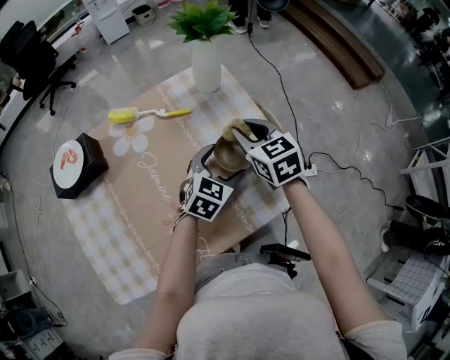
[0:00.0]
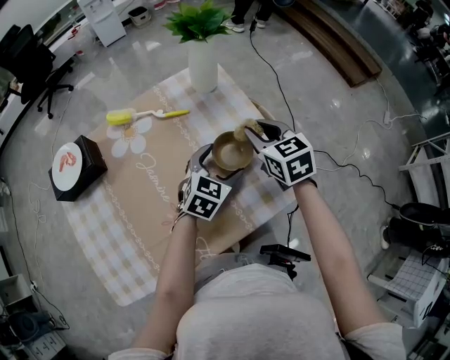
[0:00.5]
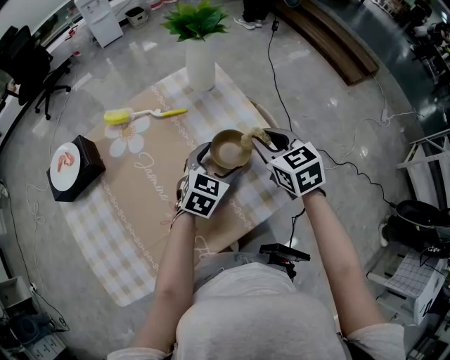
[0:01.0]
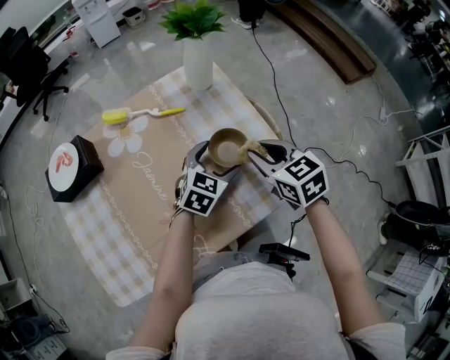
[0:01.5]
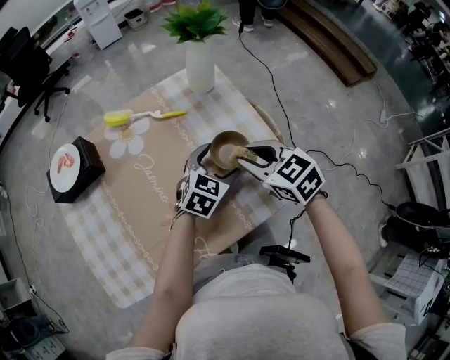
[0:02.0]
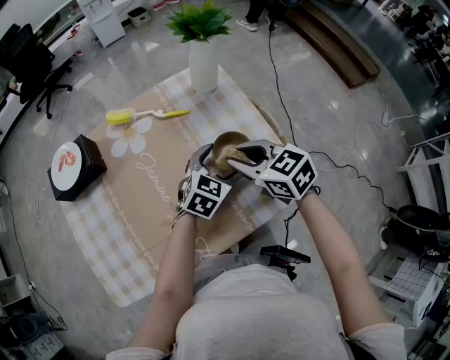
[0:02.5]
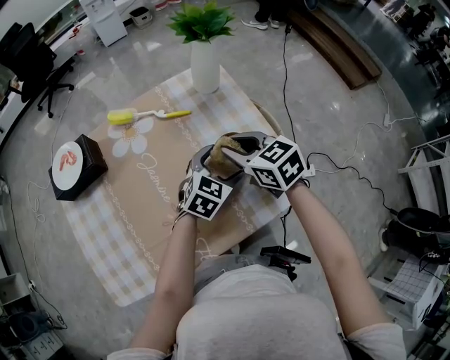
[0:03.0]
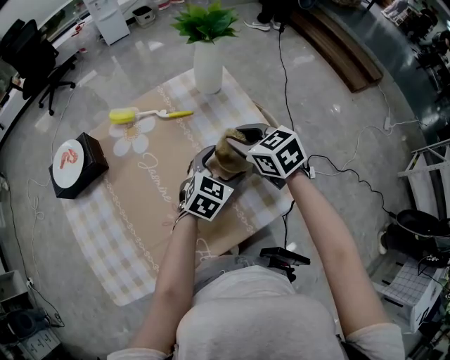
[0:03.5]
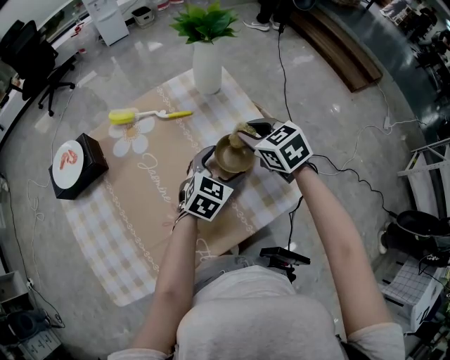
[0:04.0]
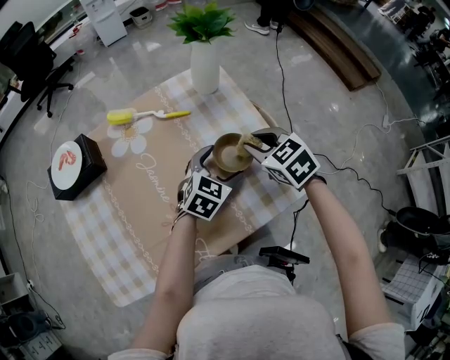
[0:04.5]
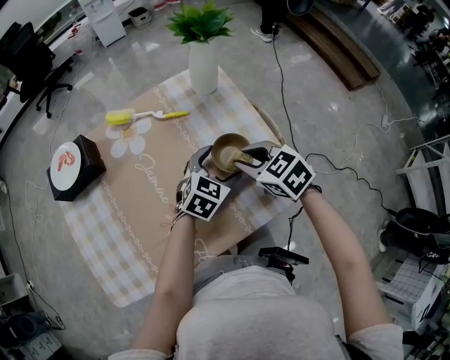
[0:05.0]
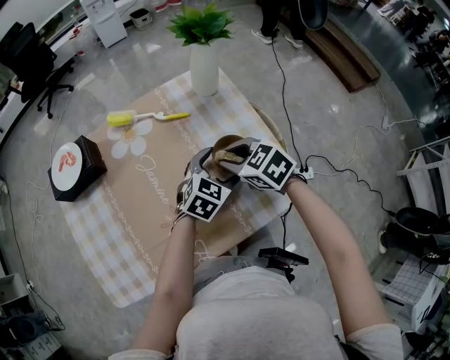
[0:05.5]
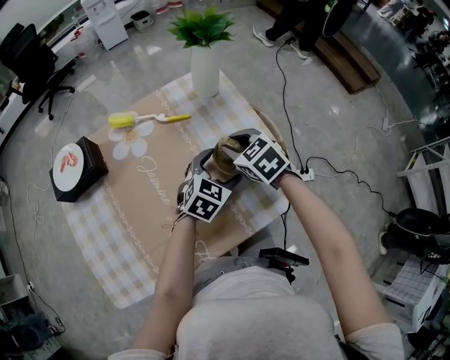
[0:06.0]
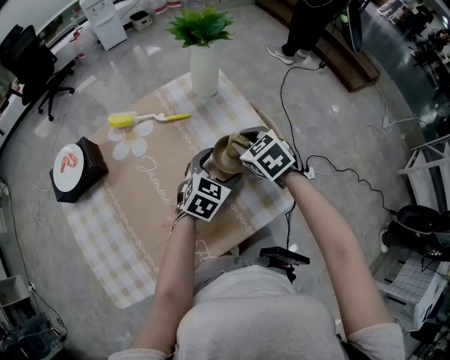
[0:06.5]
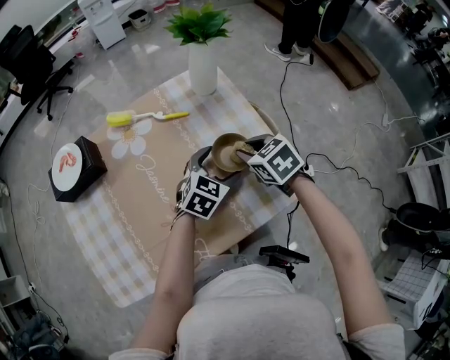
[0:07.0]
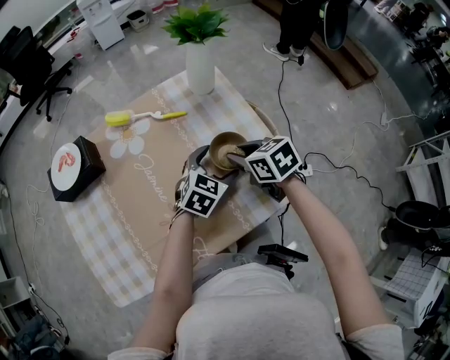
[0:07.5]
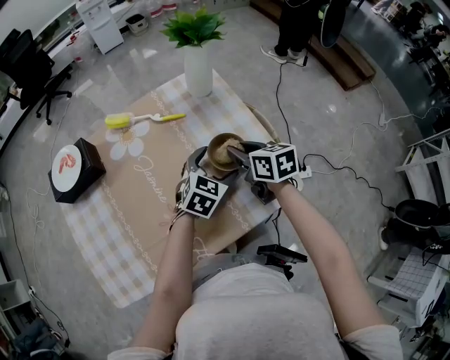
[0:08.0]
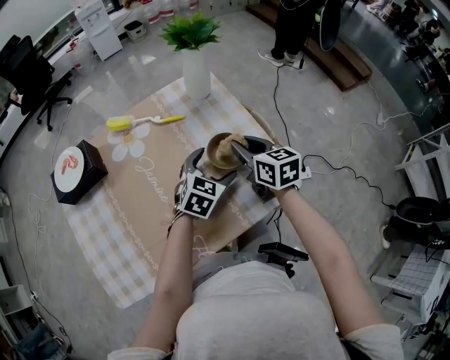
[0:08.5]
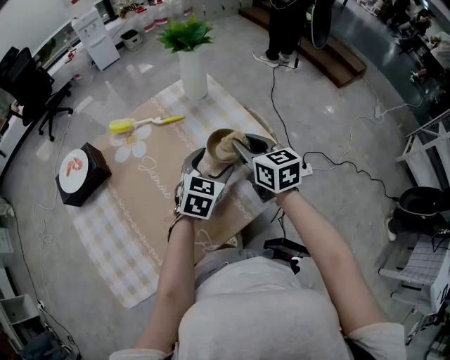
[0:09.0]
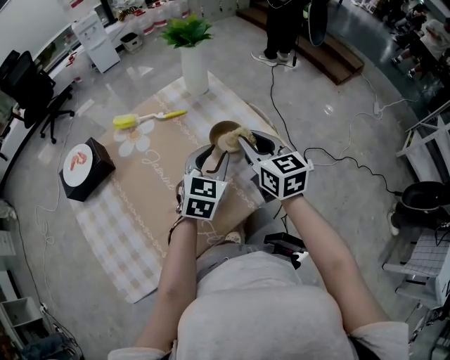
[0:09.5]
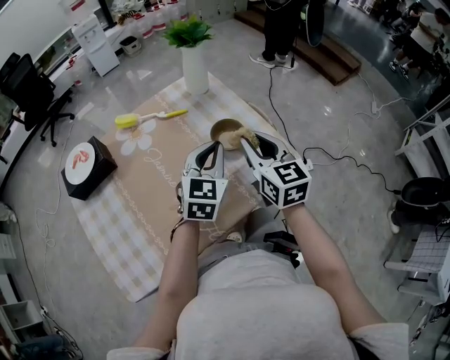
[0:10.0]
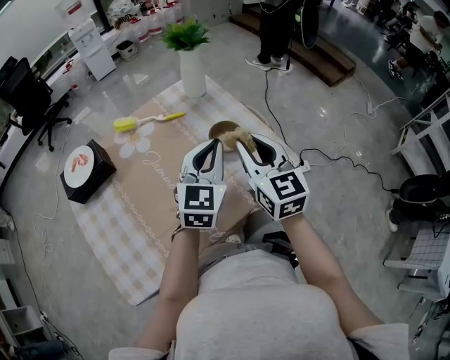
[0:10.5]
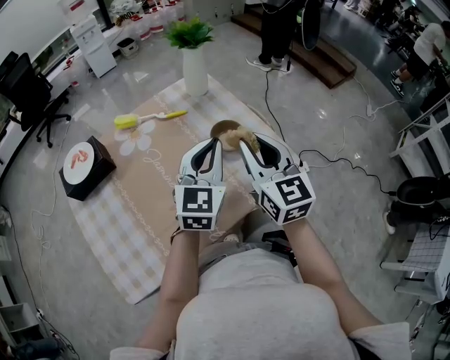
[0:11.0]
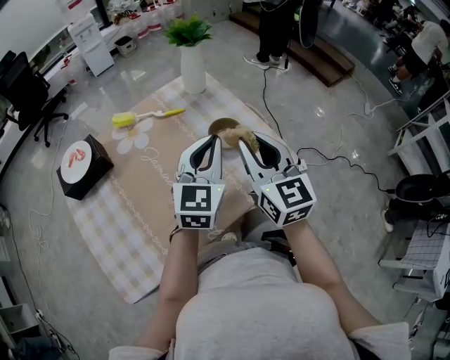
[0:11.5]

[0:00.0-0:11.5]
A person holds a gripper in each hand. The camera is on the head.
0.0 to 2.0 s: The right gripper is displaced backward by about 10 cm.
2.0 to 4.0 s: The right gripper travels forward by roughly 10 cm.
4.0 to 6.0 s: The right gripper travels backward and back again, about 10 cm each way.
6.0 to 7.5 s: The right gripper turns by some 20 degrees.
7.5 to 9.5 s: The two grippers go roughly 10 cm upward. The left gripper closes up. Meanwhile the right gripper changes its angle by approximately 40 degrees.
9.5 to 11.5 s: The left gripper moves upward, roughly 10 cm; the right gripper goes about 10 cm upward and backward.

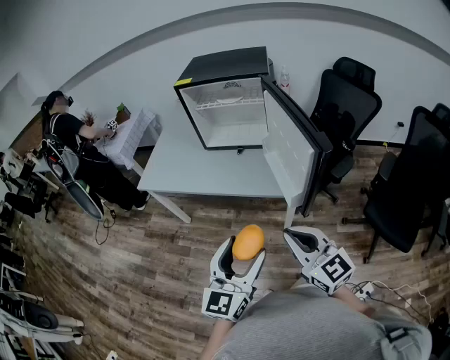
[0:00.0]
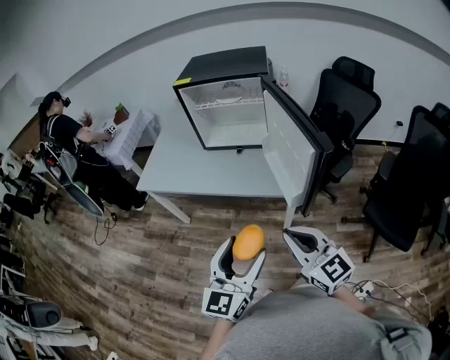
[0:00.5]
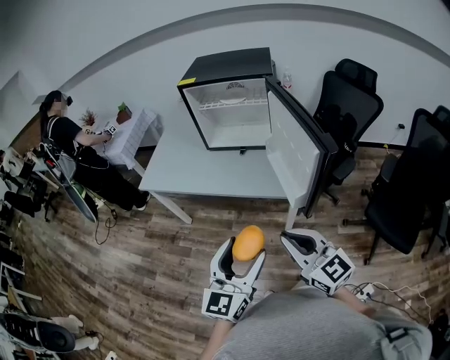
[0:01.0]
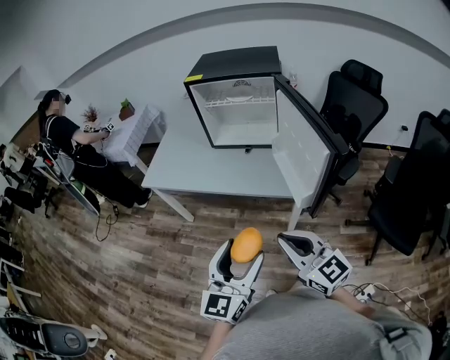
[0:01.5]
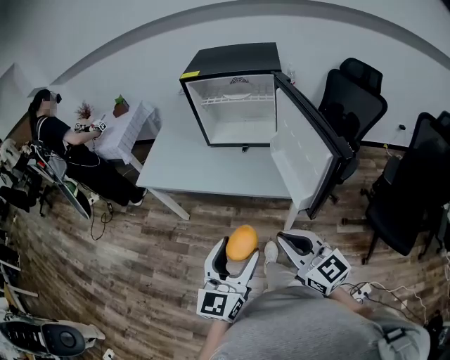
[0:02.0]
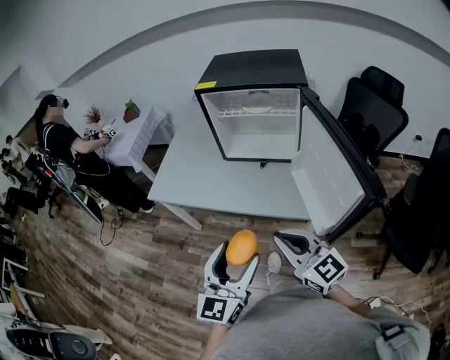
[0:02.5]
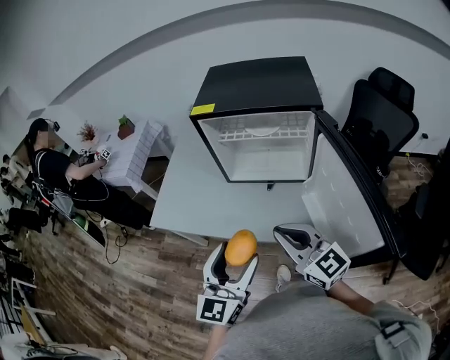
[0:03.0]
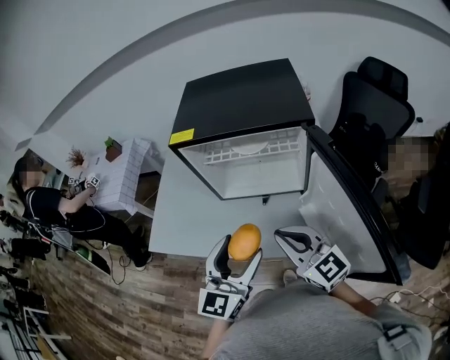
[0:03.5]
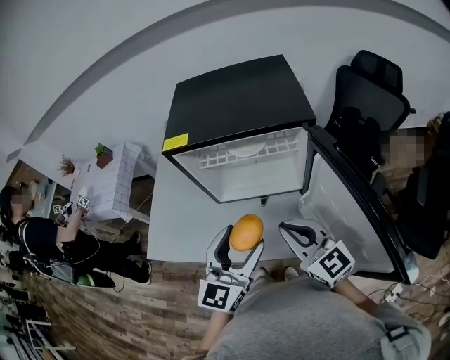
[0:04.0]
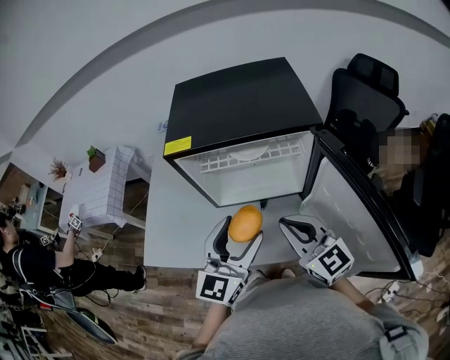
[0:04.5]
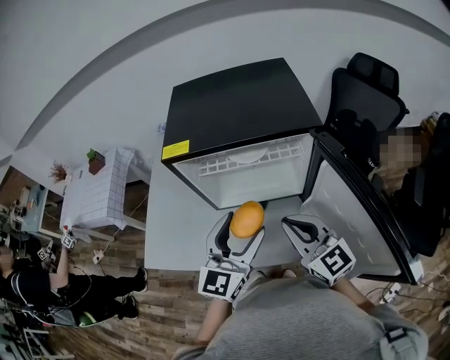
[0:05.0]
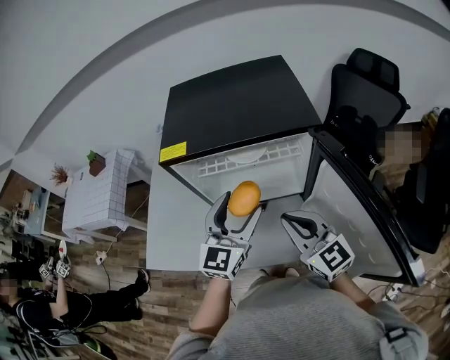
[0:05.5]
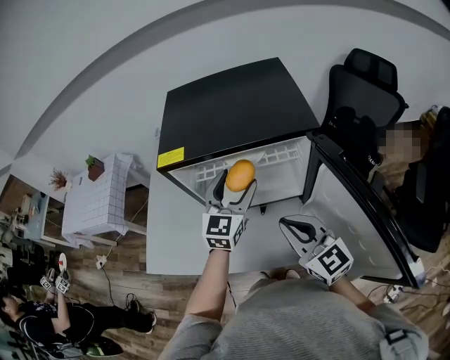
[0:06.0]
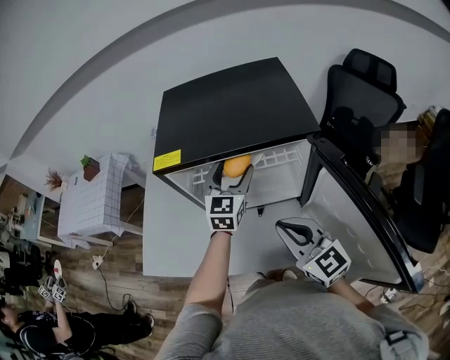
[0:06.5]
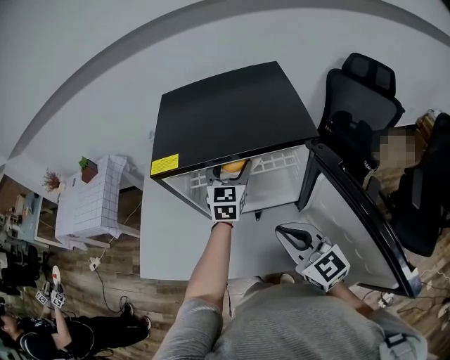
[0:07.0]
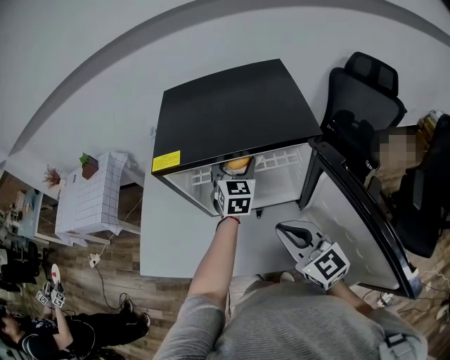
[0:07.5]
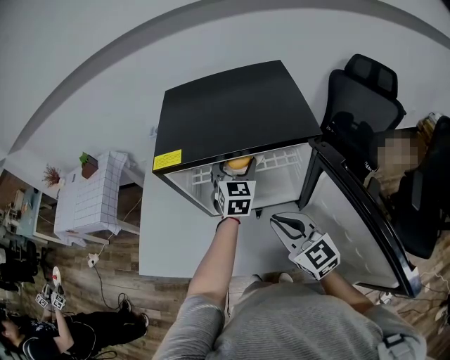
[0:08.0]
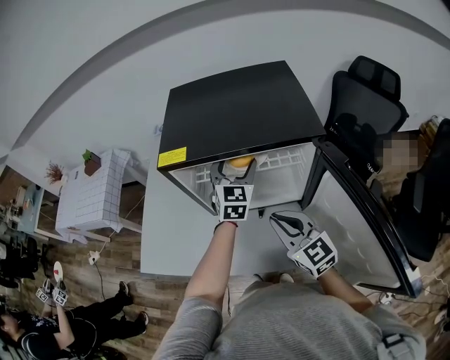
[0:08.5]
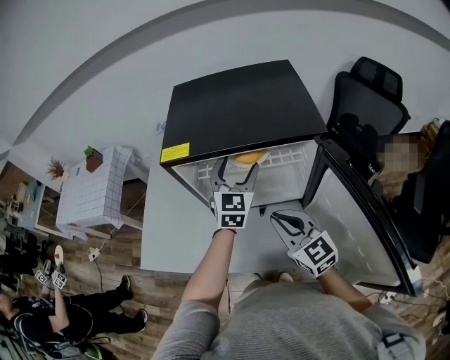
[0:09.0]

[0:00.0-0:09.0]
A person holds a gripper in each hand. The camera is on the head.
0.0 to 2.0 s: The right gripper moves some 5 cm, while the left gripper moves about 5 cm.
2.0 to 4.5 s: The grippers both shift forward by about 40 cm.
4.5 to 7.0 s: The left gripper shifts some 25 cm forward.
7.0 to 9.0 s: The grippers make only small movements.

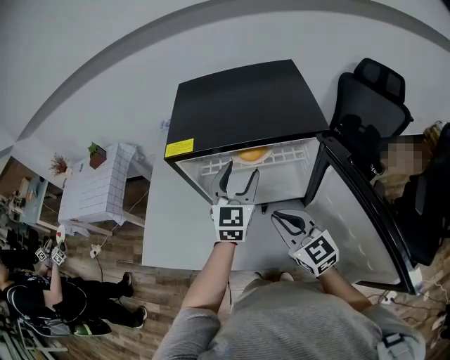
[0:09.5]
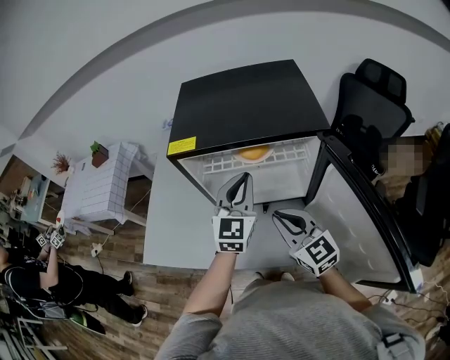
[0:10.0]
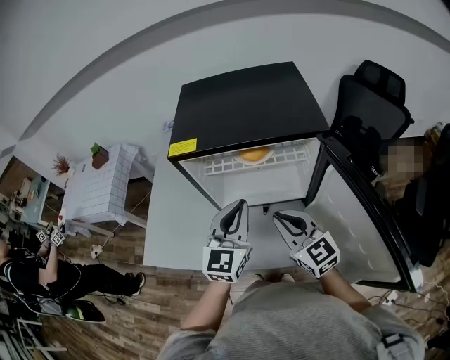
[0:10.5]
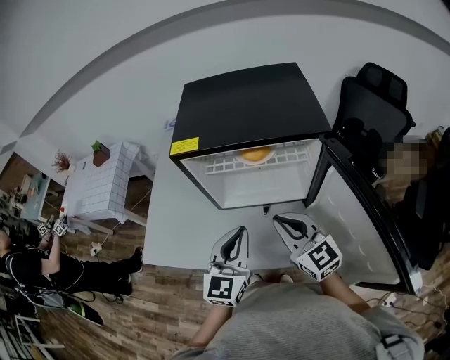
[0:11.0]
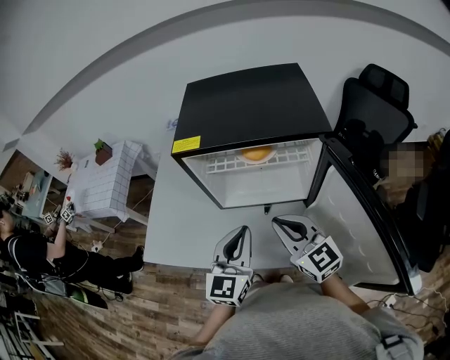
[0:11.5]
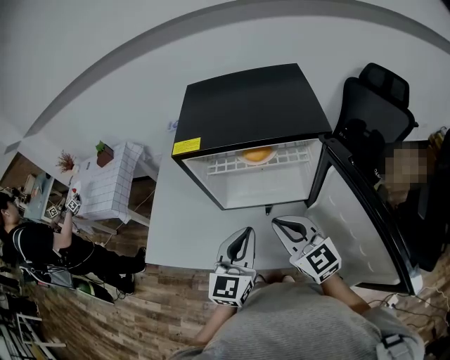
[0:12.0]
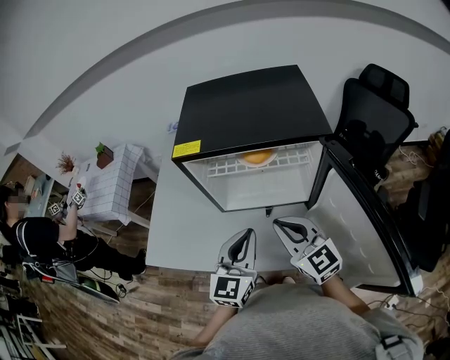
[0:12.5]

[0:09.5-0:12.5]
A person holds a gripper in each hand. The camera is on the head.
9.5 to 11.0 s: The left gripper heads backward, covering approximately 15 cm, and closes.
11.0 to 12.5 s: There are only small adjustments of the grippers.

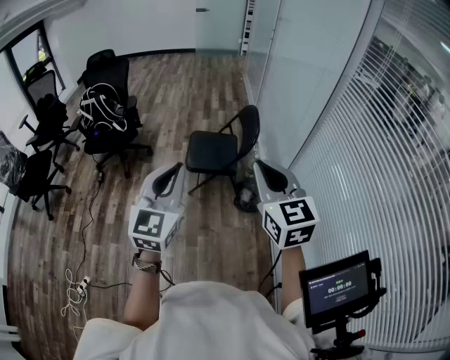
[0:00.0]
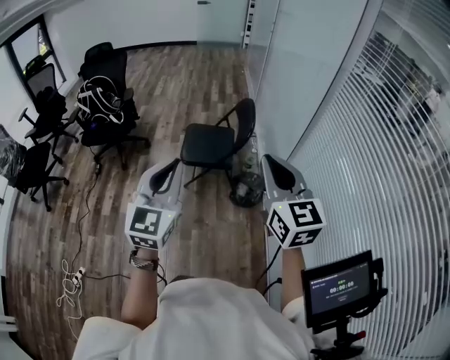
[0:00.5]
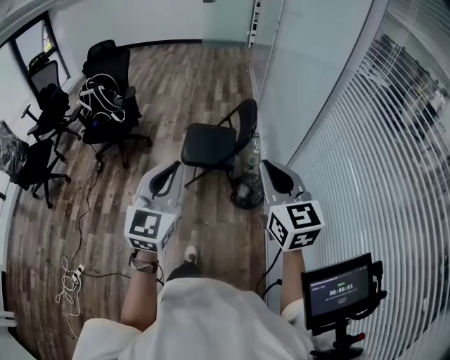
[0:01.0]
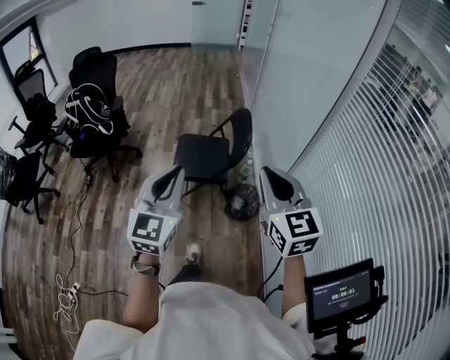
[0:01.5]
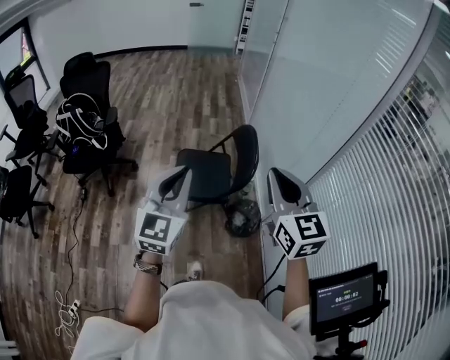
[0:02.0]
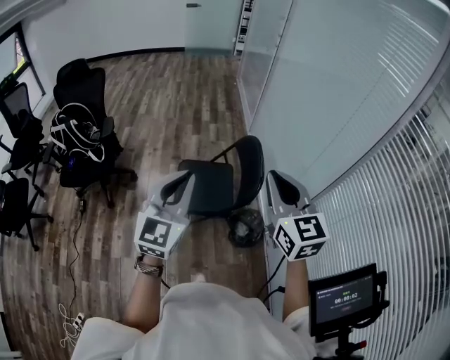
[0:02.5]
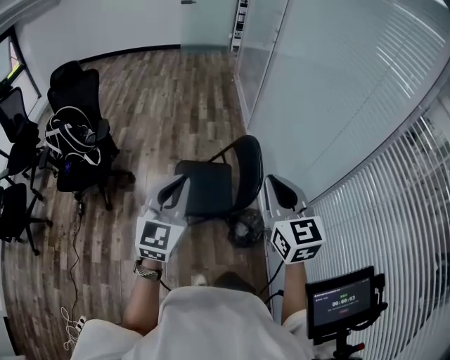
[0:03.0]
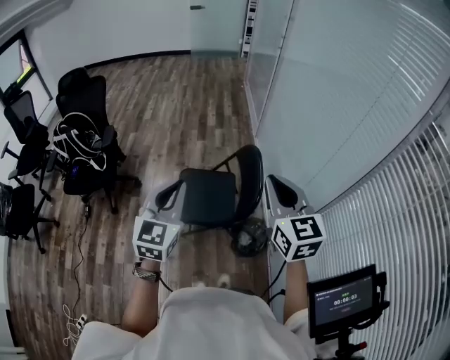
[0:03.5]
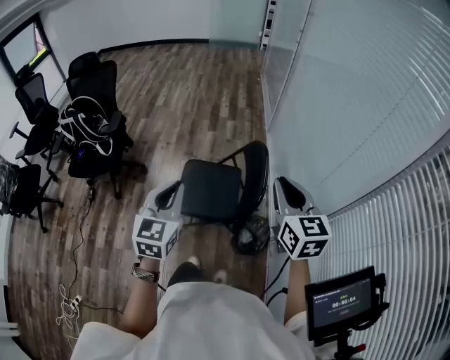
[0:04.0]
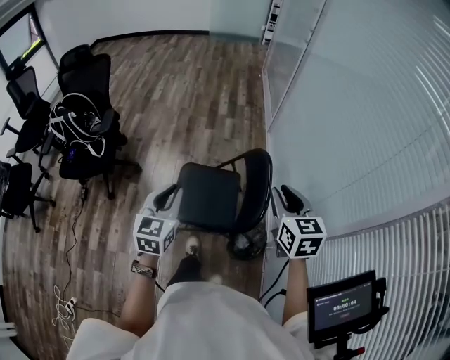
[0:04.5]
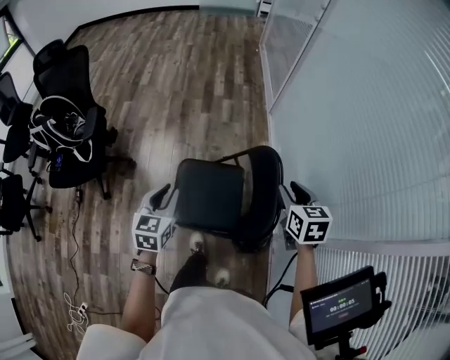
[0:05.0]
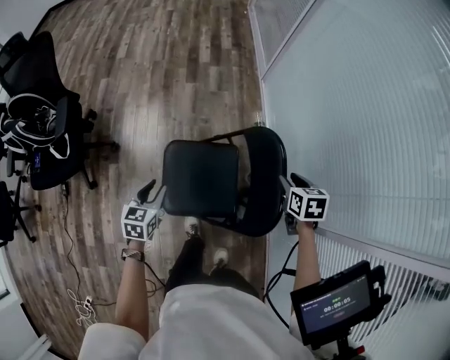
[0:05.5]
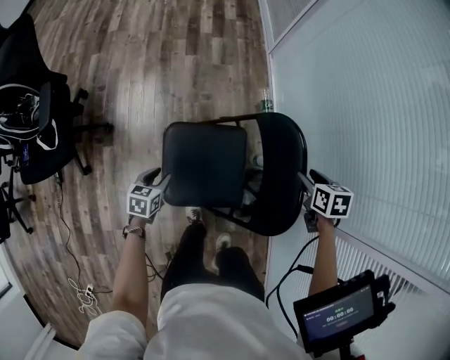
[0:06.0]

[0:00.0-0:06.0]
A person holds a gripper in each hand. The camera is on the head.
0.0 to 2.0 s: The grippers both shift forward by about 20 cm.
2.0 to 4.0 s: Both grippers move forward and downward, about 15 cm.
4.0 to 6.0 s: Both grippers move downward and forward, roughly 40 cm. The right gripper tilts its fingers some 50 degrees downward, and opens up. Meanwhile the left gripper tilts its fingers approximately 40 degrees downward, and opens.
